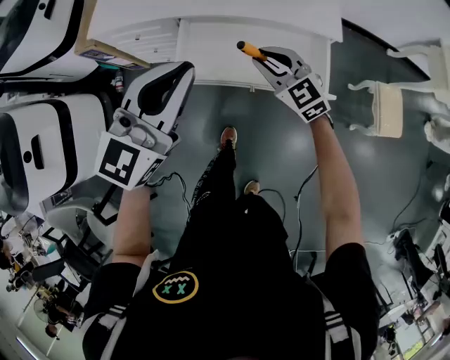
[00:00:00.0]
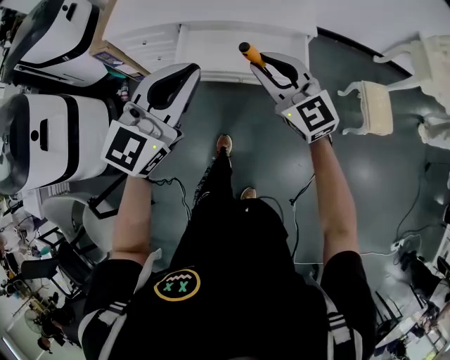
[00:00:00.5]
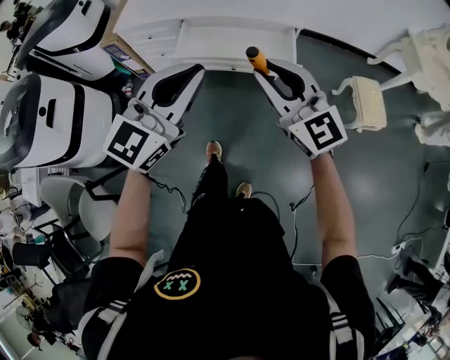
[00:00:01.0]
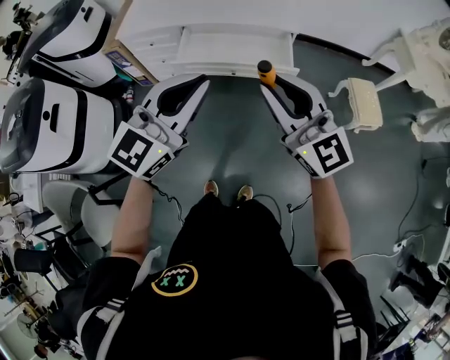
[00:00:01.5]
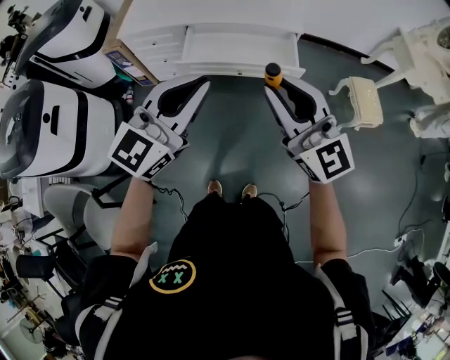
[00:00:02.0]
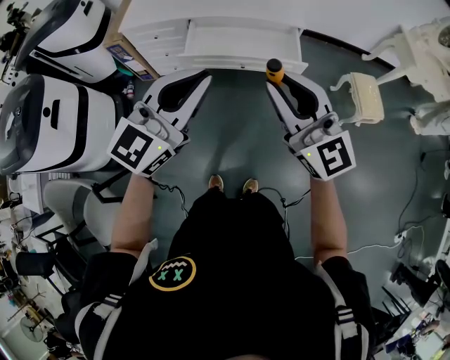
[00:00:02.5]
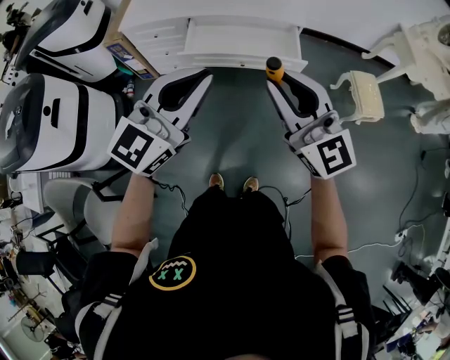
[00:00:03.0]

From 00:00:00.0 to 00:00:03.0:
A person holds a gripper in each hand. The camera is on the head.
From 00:00:00.0 to 00:00:01.5: Both grippers travel together backward and upward, roughly 40 cm. The right gripper tips its fingers upward by roughly 30 degrees.
From 00:00:01.5 to 00:00:03.0: The right gripper ends up some 5 cm from where it was, while the left gripper is displaced to the left by approximately 5 cm.

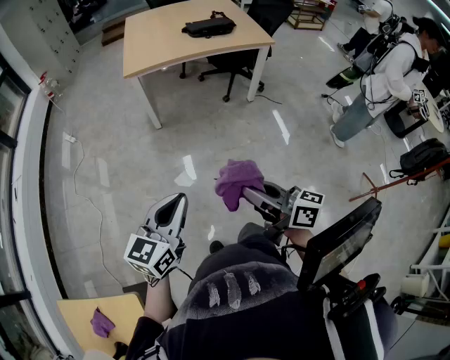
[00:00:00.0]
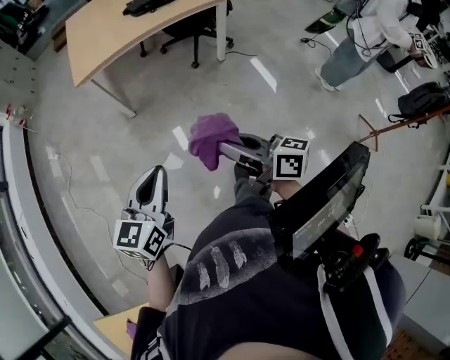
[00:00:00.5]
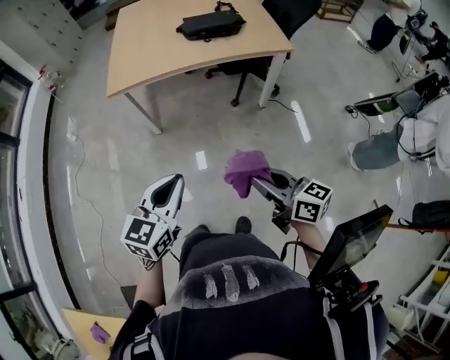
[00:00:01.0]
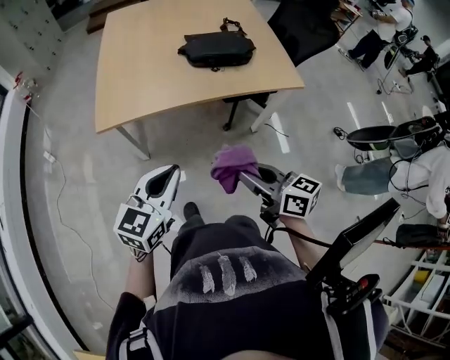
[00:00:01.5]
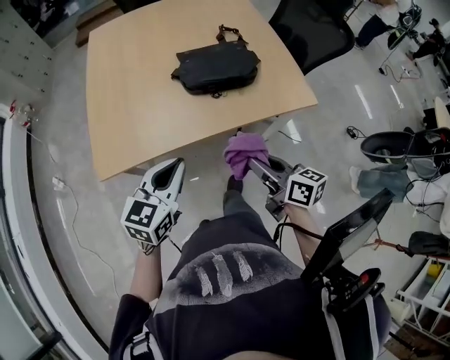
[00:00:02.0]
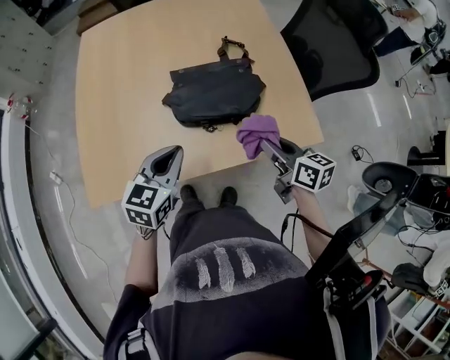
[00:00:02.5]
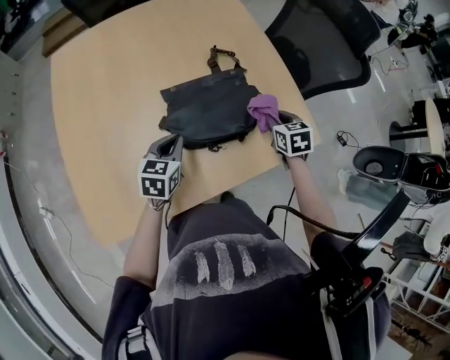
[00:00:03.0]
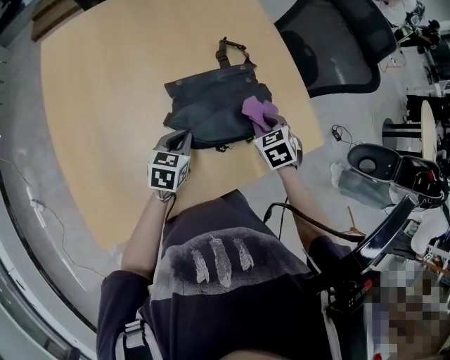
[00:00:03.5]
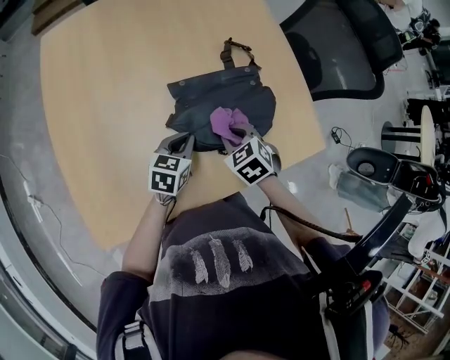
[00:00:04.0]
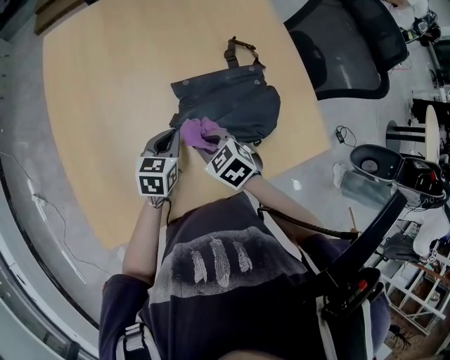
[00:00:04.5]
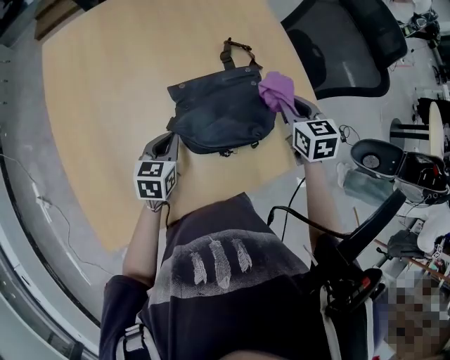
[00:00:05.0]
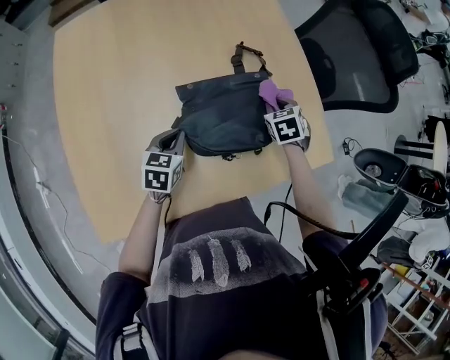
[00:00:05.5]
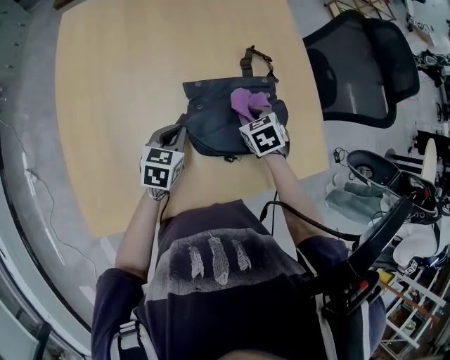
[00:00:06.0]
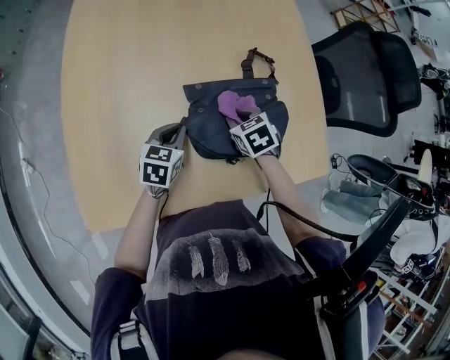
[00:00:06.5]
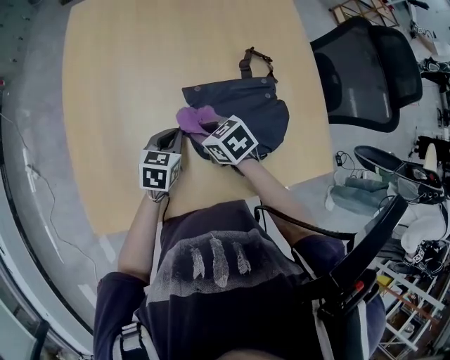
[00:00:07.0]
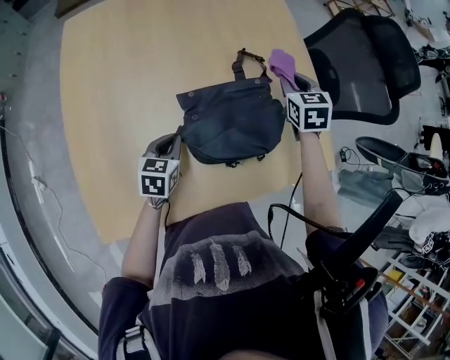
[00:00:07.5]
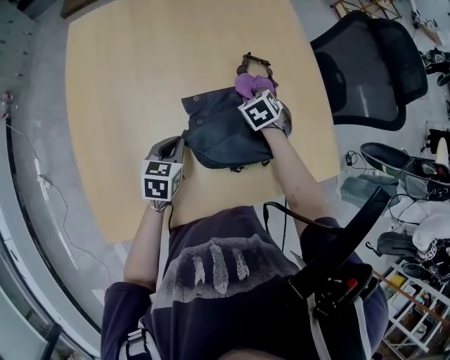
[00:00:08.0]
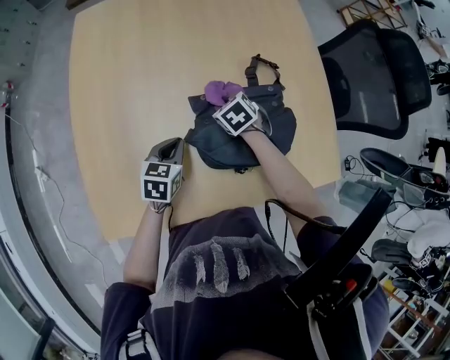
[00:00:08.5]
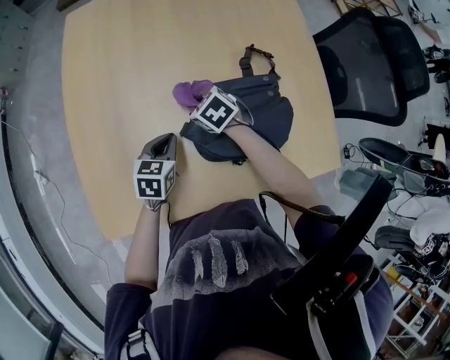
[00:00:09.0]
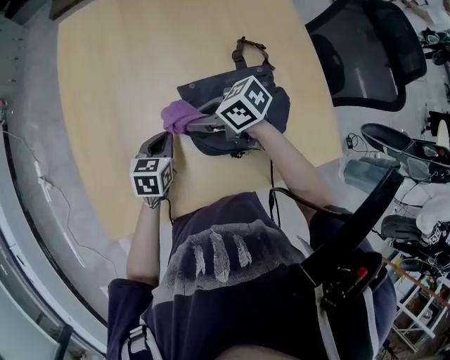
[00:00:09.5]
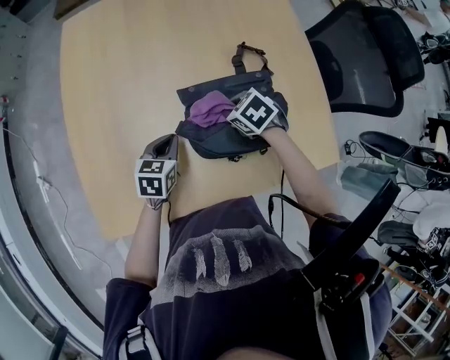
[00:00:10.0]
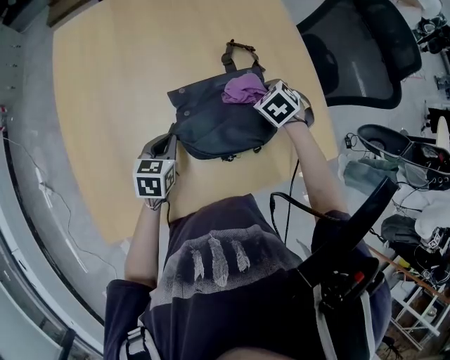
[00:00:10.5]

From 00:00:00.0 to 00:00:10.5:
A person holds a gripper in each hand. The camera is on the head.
From 00:00:00.0 to 00:00:02.0: Both grippers are carried forward, approximately 80 cm.
From 00:00:02.0 to 00:00:04.0: The left gripper shifts by roughly 40 cm, and changes its angle by some 20 degrees. The right gripper moves some 40 cm, and angles its fingers downward, by about 40 degrees.
From 00:00:04.0 to 00:00:06.5: The left gripper changes place by approximately 10 cm. Meanwhile the right gripper reaches roughly 10 cm upward, then returns.
From 00:00:06.5 to 00:00:08.5: The right gripper moves approximately 10 cm upward and comes back.
From 00:00:08.5 to 00:00:10.5: The right gripper changes place by some 15 cm.

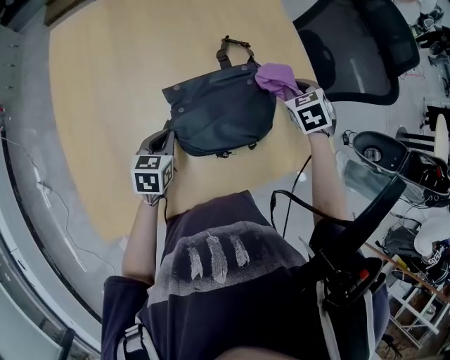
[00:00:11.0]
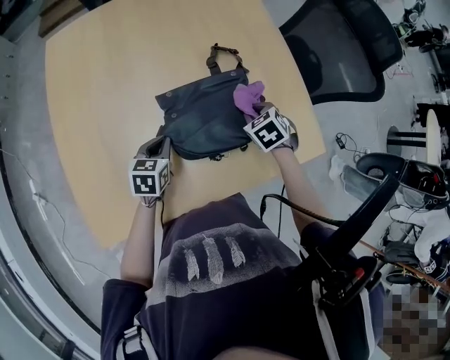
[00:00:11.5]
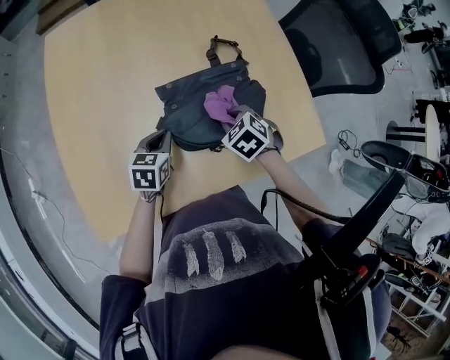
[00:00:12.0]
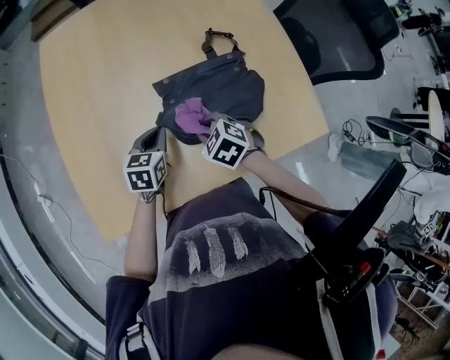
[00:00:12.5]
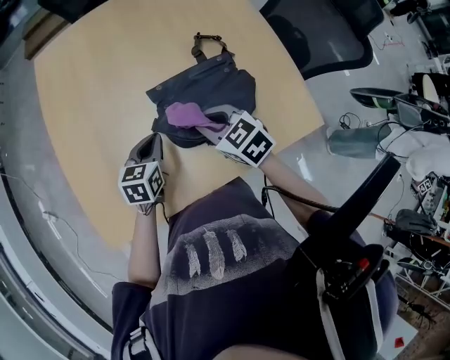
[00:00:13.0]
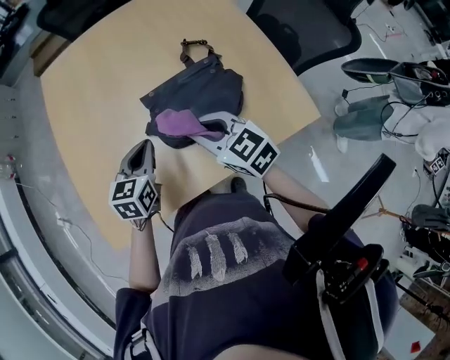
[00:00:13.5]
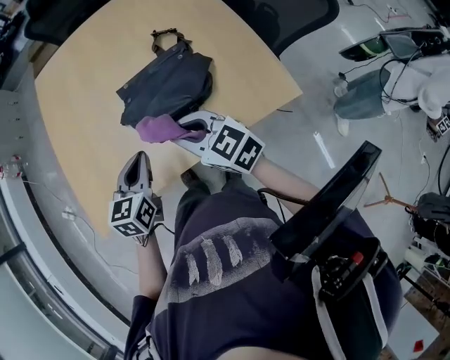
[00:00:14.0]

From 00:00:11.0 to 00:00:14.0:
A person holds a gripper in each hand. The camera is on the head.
From 00:00:11.0 to 00:00:12.5: The right gripper ends up some 30 cm from where it was, and changes its angle by approximately 30 degrees.
From 00:00:12.5 to 00:00:14.0: The right gripper shifts about 20 cm upward, backward and to the right, and tips its fingers upward by approximately 40 degrees, while the left gripper moves backward, upward and to the right, about 20 cm.

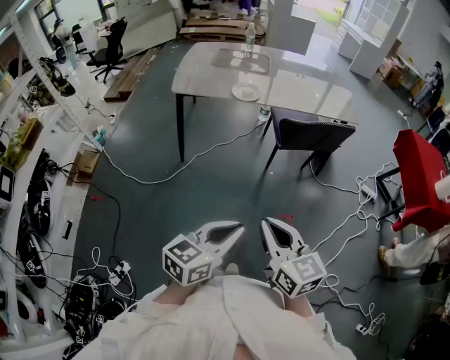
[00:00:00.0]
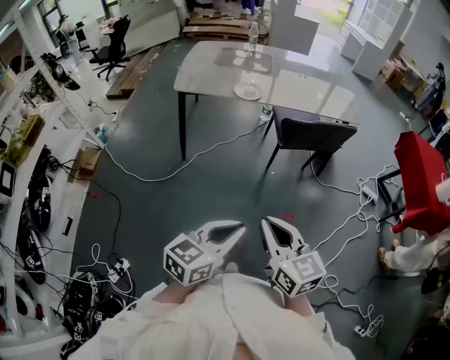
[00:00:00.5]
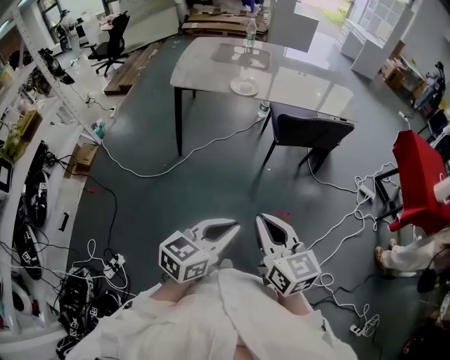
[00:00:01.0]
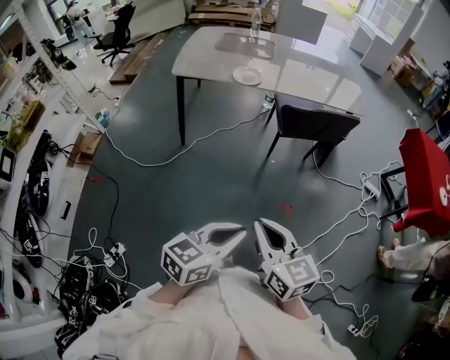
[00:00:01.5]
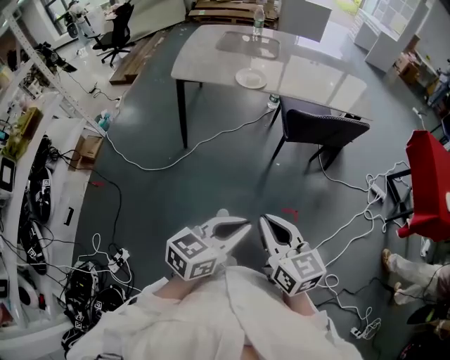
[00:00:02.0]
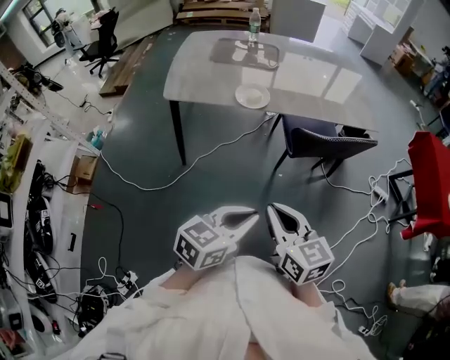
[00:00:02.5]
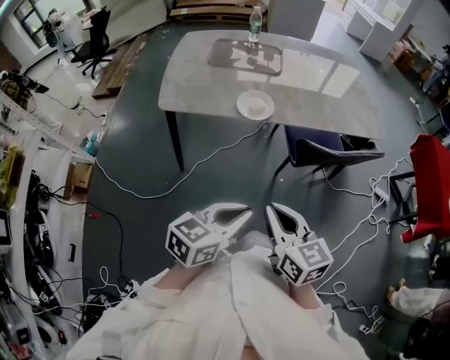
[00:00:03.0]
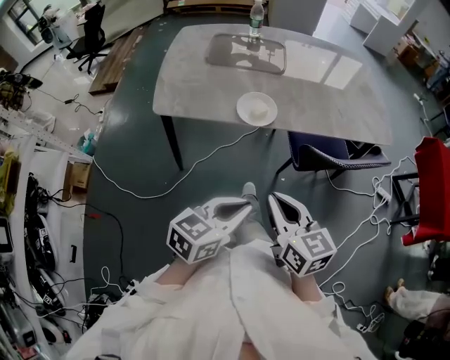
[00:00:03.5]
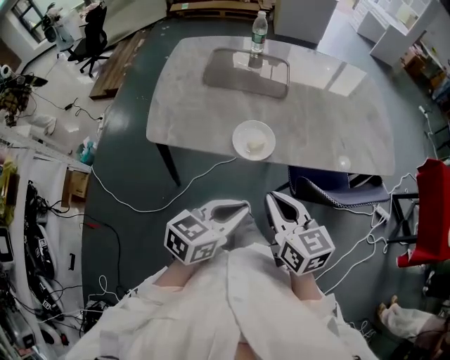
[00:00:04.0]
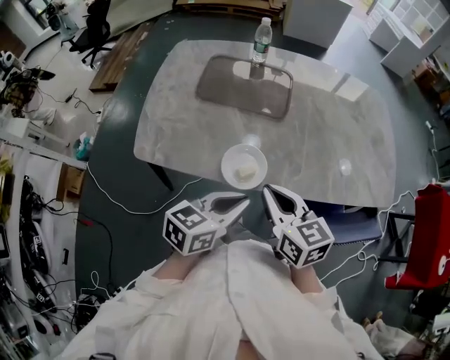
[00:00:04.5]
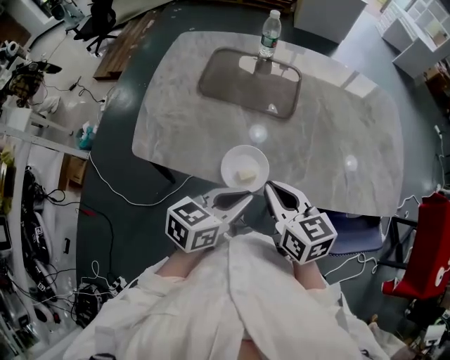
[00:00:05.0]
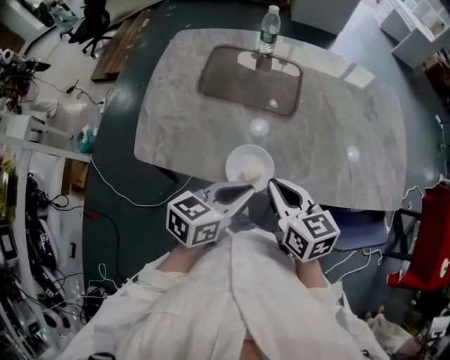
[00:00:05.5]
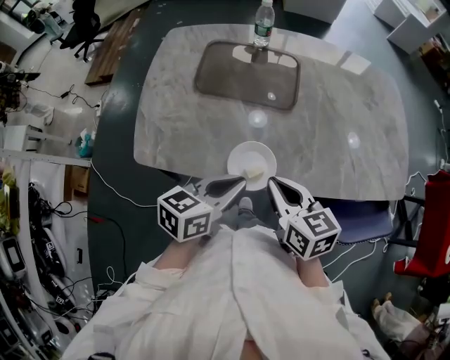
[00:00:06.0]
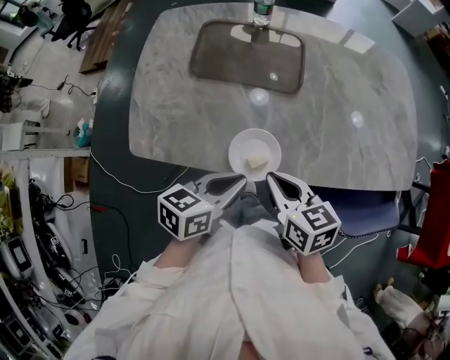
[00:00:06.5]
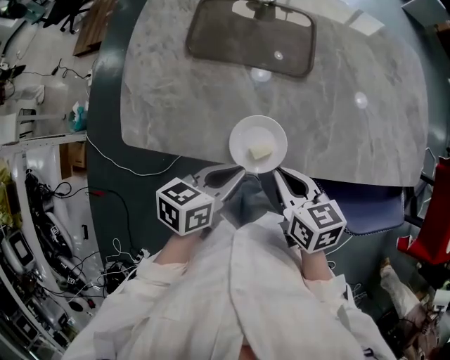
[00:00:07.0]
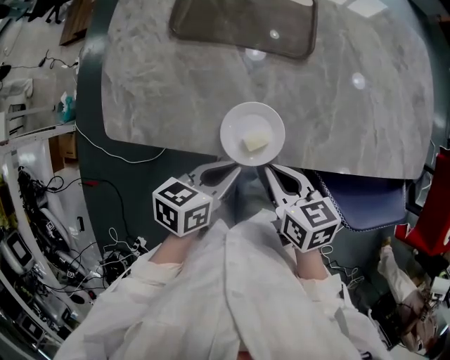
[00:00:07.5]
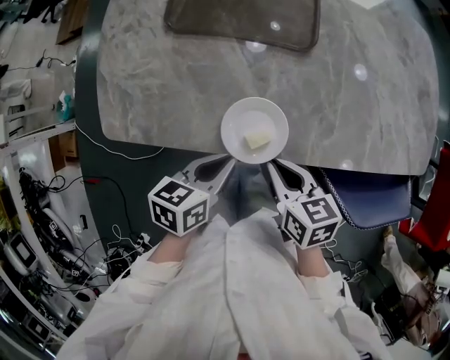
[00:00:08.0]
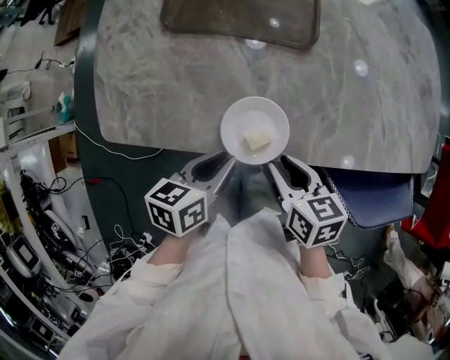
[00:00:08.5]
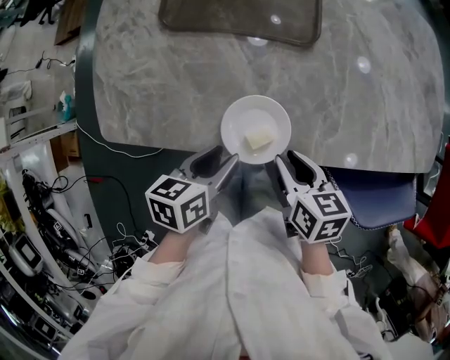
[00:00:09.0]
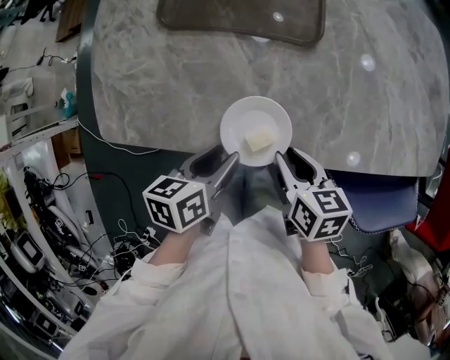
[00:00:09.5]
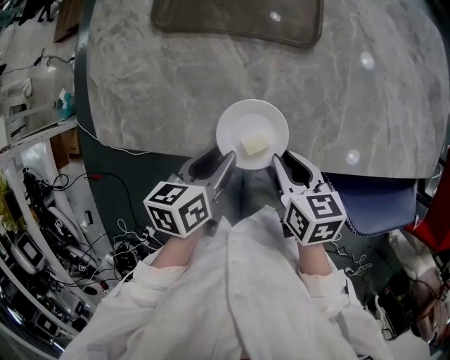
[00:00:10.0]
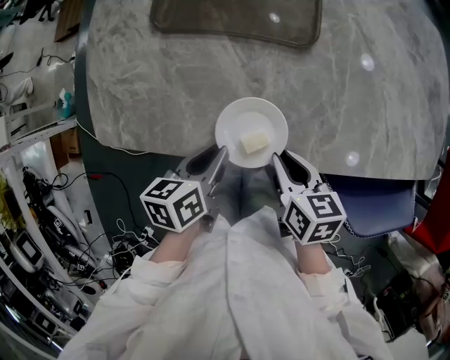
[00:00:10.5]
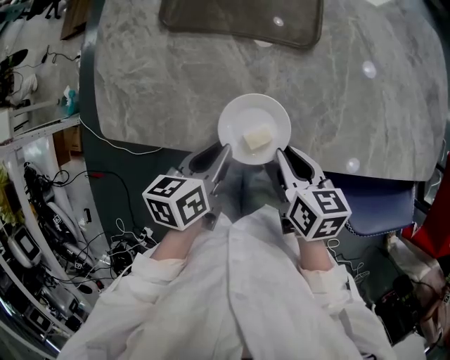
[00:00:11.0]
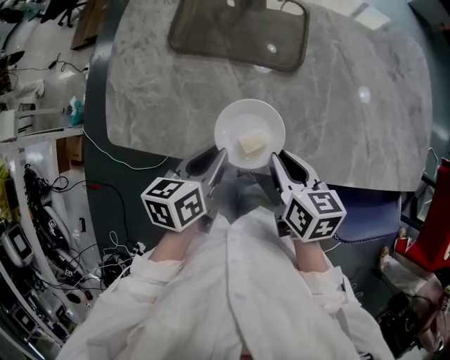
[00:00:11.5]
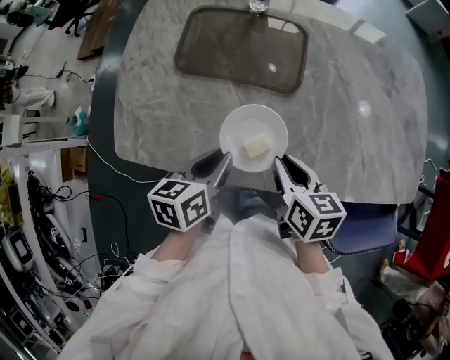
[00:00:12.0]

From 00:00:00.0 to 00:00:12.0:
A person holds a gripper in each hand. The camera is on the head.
From 00:00:00.0 to 00:00:02.0: Both grippers travel together forward, about 5 cm.
From 00:00:02.0 to 00:00:04.0: The pair of grippers is taken forward, approximately 50 cm.
From 00:00:04.0 to 00:00:06.0: Both grippers travel together forward, some 20 cm.
From 00:00:06.0 to 00:00:08.0: Both grippers move downward, roughly 15 cm.
From 00:00:08.0 to 00:00:10.0: The left gripper opens up.
From 00:00:10.0 to 00:00:12.0: The grippers both shift upward and forward by about 10 cm. The left gripper closes.
